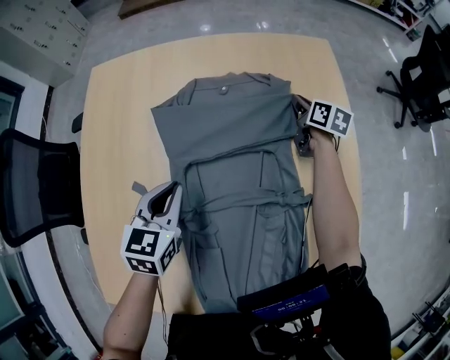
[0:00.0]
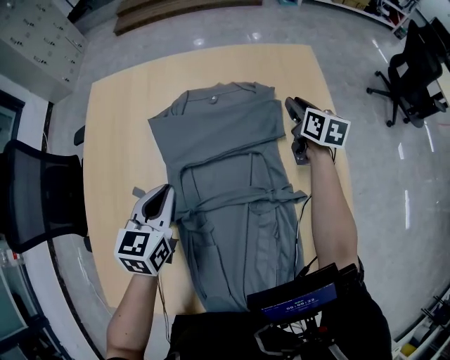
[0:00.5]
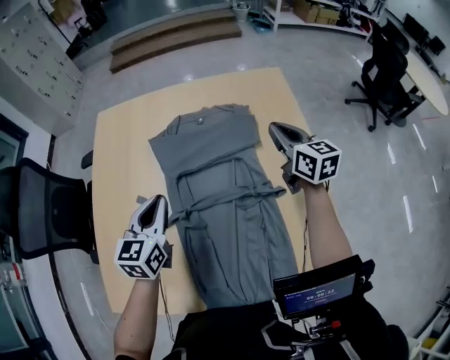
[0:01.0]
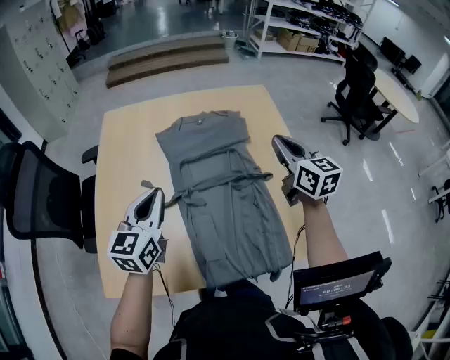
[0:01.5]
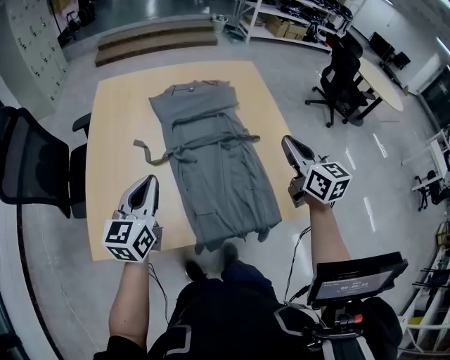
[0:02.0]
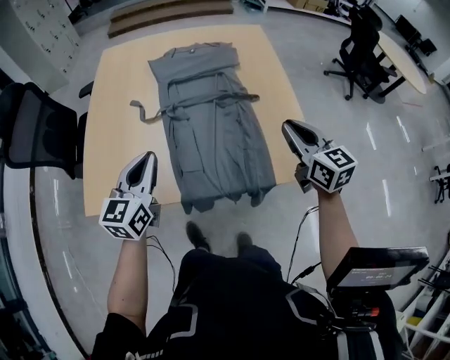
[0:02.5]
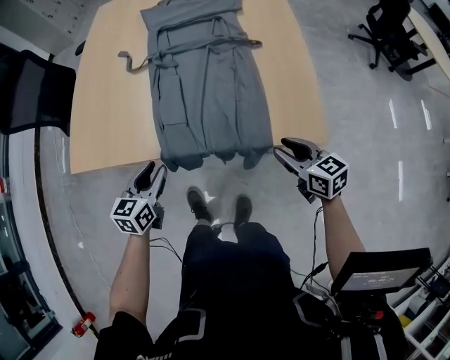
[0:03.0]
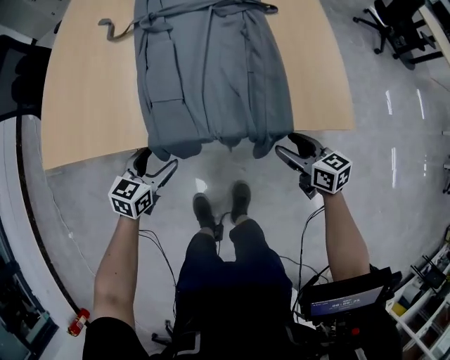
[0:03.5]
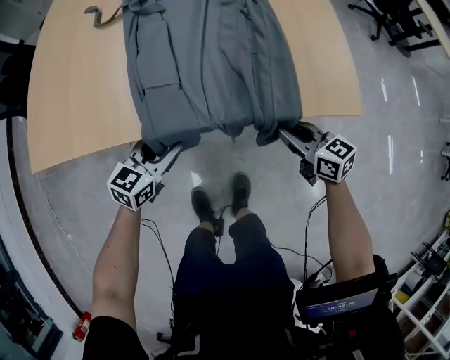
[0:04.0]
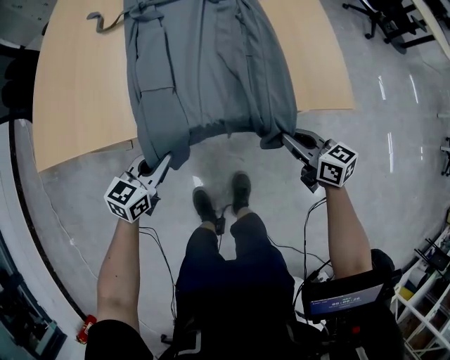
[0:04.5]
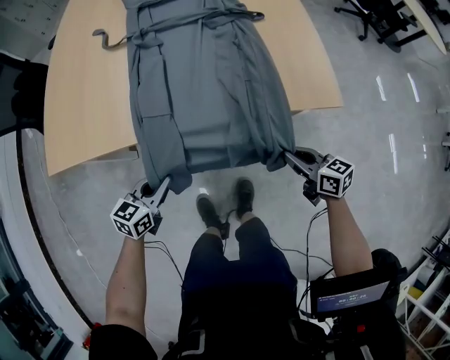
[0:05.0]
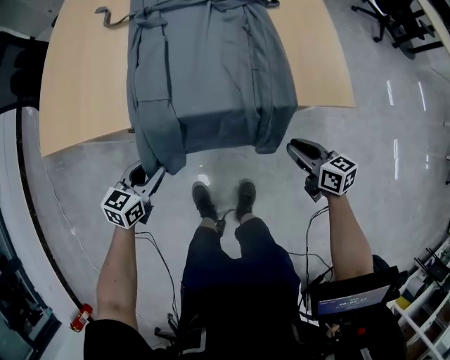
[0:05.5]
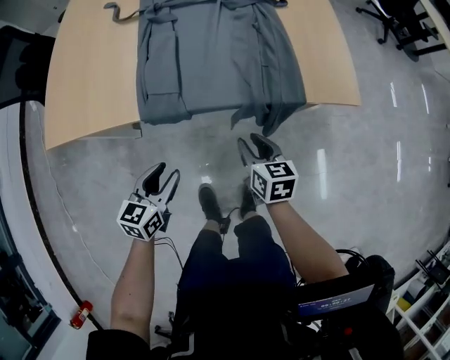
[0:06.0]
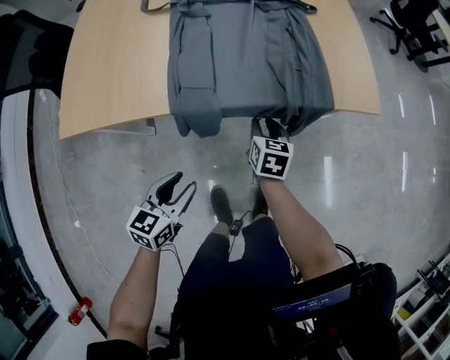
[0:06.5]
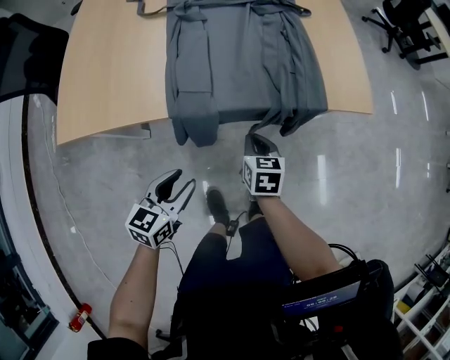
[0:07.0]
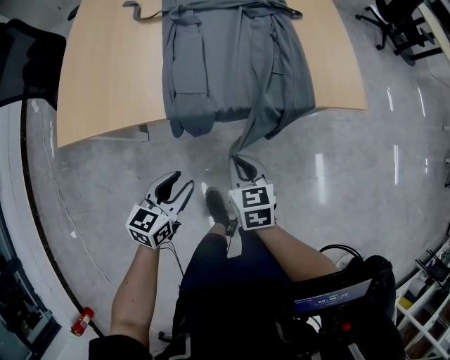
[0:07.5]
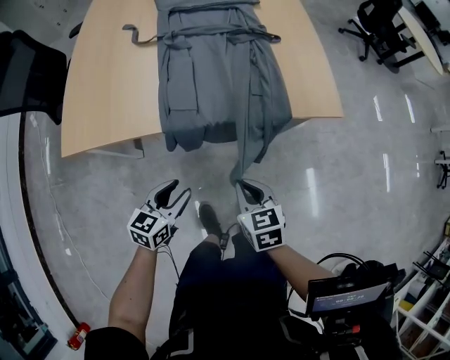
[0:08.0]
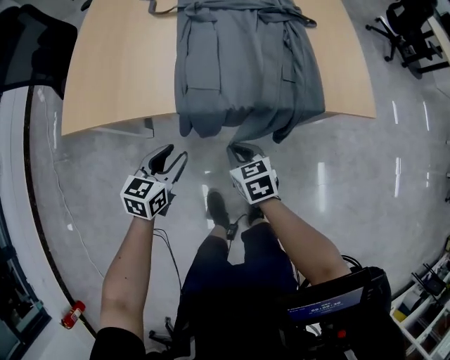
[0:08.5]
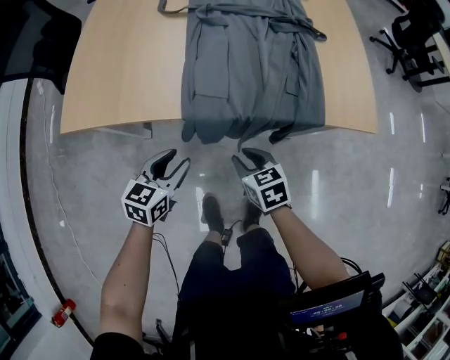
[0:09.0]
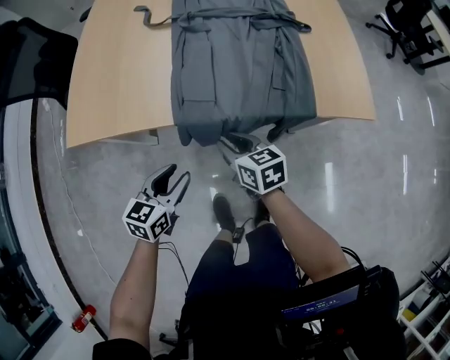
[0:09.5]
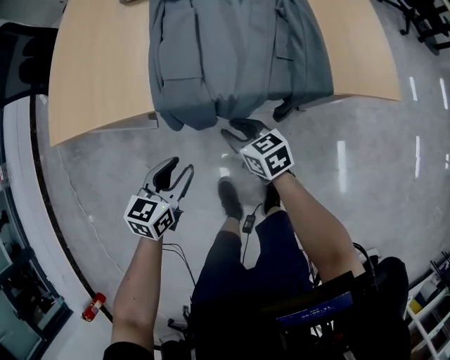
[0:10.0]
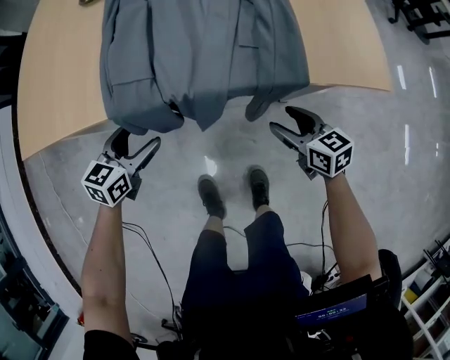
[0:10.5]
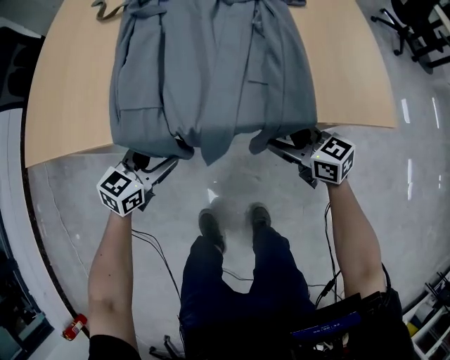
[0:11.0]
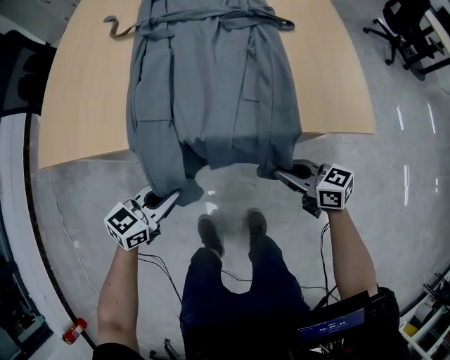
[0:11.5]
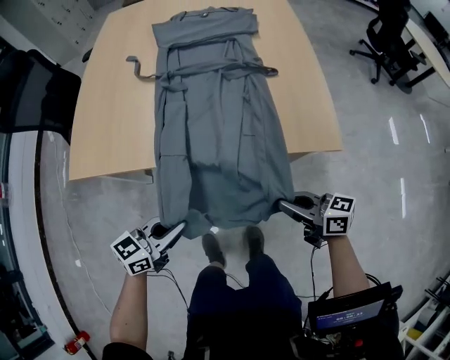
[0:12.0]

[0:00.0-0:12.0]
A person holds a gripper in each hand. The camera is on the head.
0:00.0 to 0:02.0: The left gripper is displaced backward and upward by approximately 30 cm, and turns by approximately 30 degrees. The right gripper goes about 50 cm backward and upward, and turns by roughly 30 degrees.
0:02.0 to 0:04.0: Both grippers move downward and backward, some 40 cm. The right gripper turns by roughly 40 degrees, and opens, then closes once more; the left gripper changes its angle by roughly 30 degrees, and opens its fingers.
0:04.0 to 0:06.0: The right gripper heads to the left and backward, covering some 10 cm, and swivels roughly 20 degrees. The left gripper heads backward, covering some 10 cm, and closes, then opens again.
0:06.0 to 0:08.0: The right gripper goes some 15 cm backward and upward, and closes up.
0:08.0 to 0:10.0: The right gripper moves up and down over about 15 cm, changing direction 2 times, turns by about 30 degrees, and opens its fingers. The left gripper is displaced downward by about 5 cm.
0:10.0 to 0:12.0: The left gripper is displaced upward and to the right by about 15 cm, swivels approximately 30 degrees, and closes its fingers; the right gripper travels upward and to the right by approximately 25 cm, rotates some 20 degrees, and opens, then closes again.

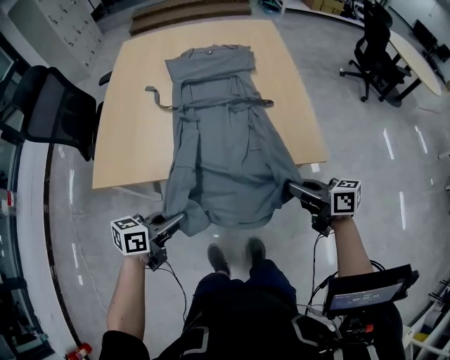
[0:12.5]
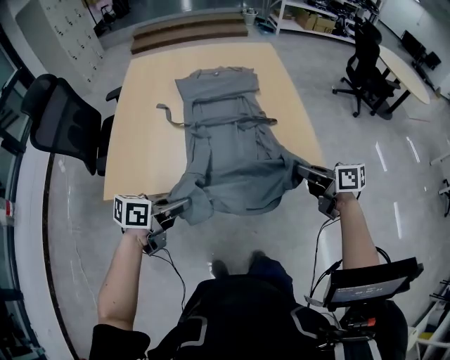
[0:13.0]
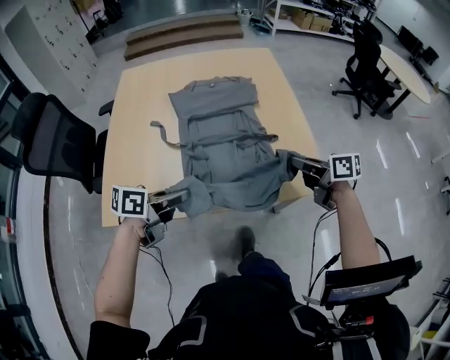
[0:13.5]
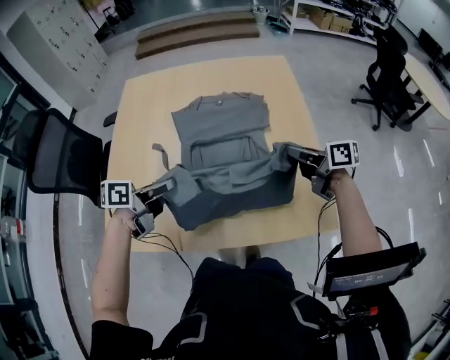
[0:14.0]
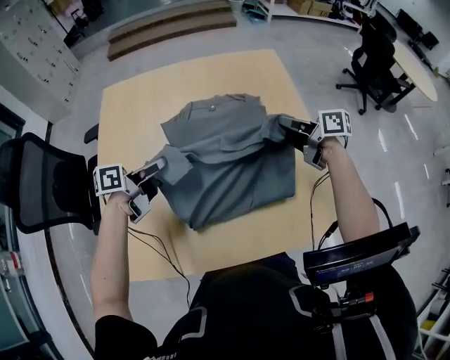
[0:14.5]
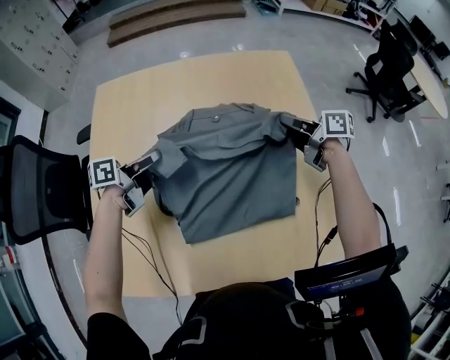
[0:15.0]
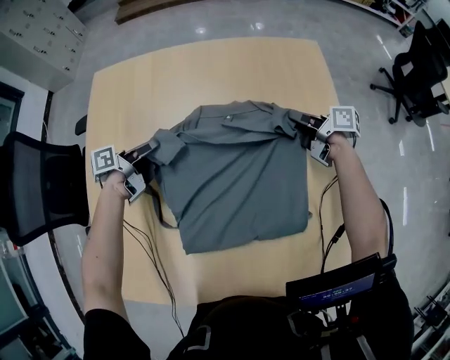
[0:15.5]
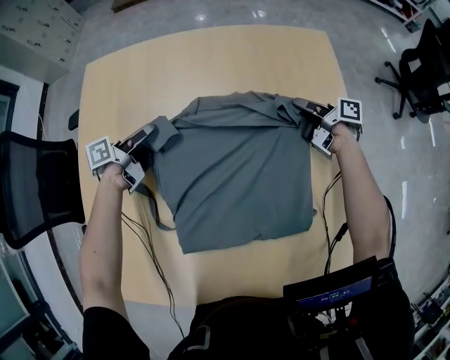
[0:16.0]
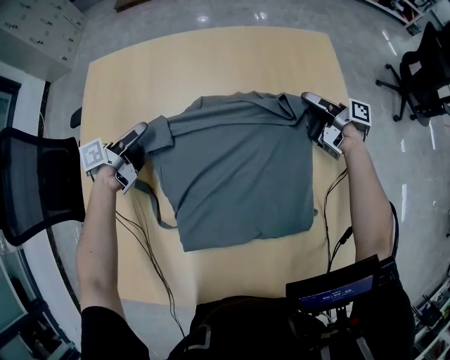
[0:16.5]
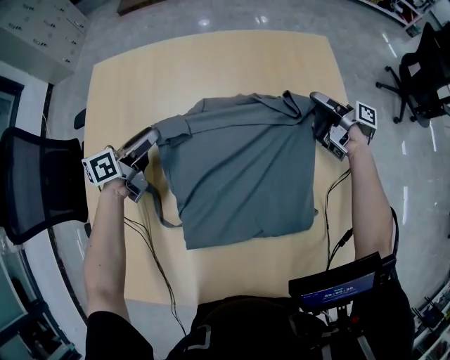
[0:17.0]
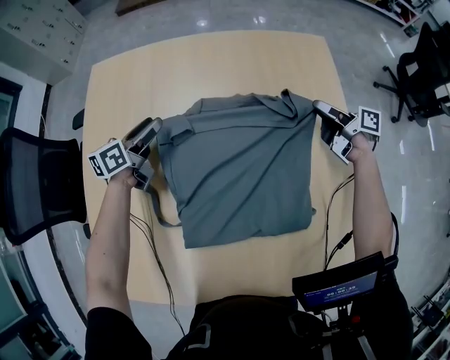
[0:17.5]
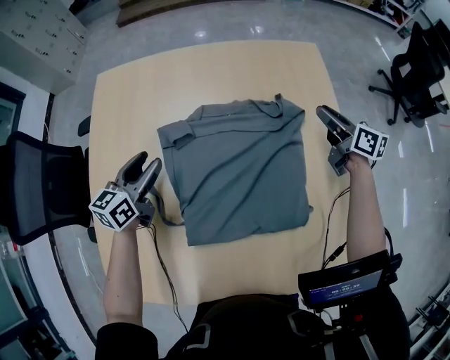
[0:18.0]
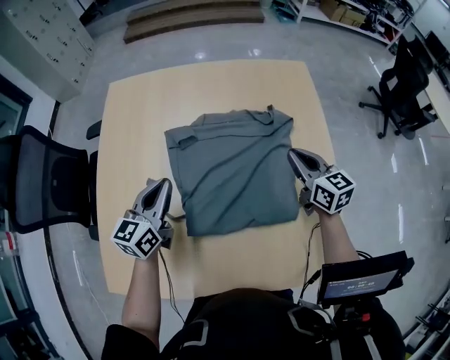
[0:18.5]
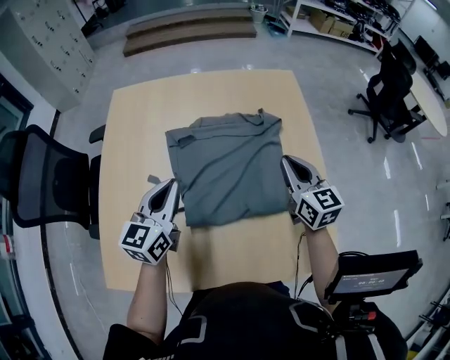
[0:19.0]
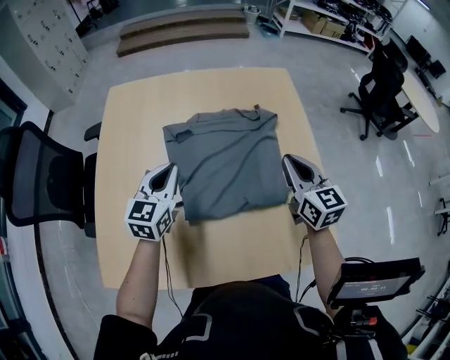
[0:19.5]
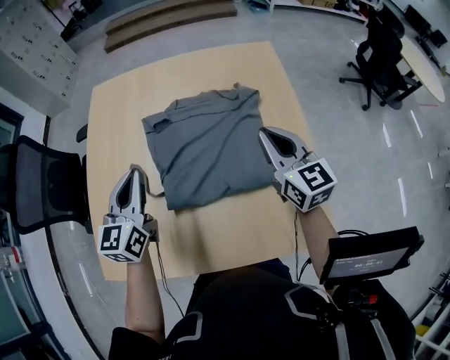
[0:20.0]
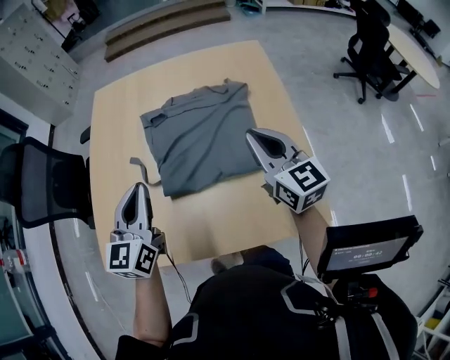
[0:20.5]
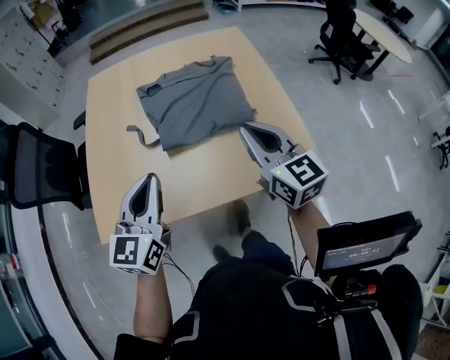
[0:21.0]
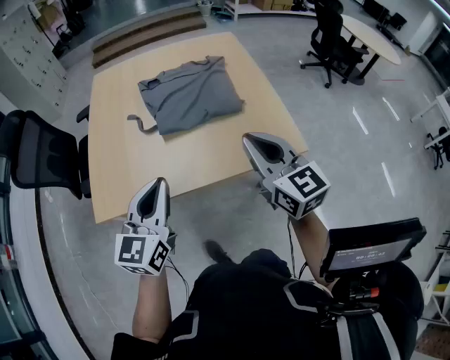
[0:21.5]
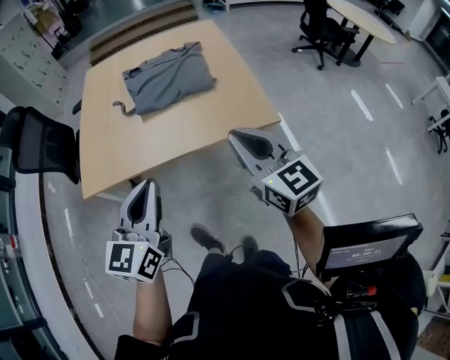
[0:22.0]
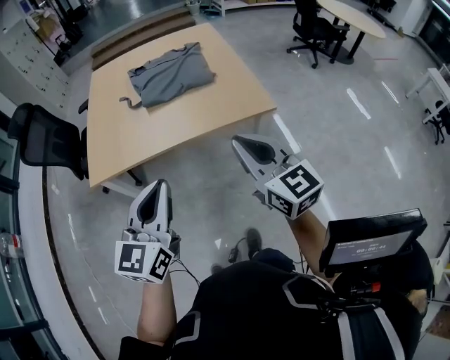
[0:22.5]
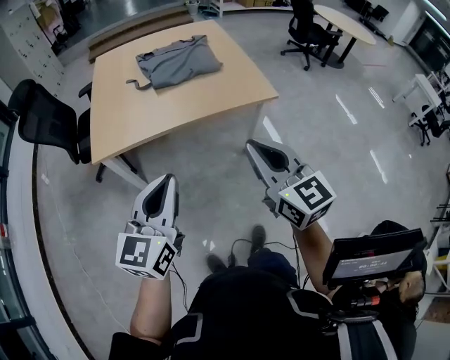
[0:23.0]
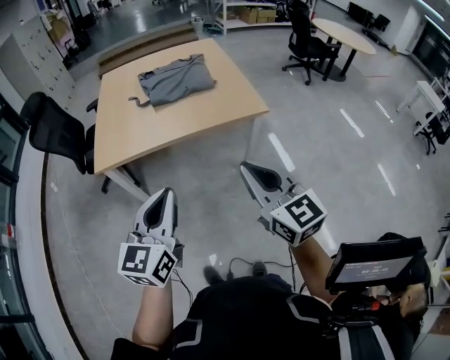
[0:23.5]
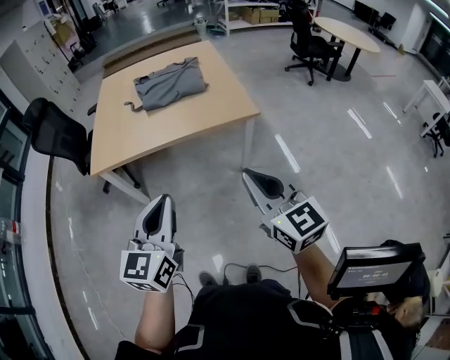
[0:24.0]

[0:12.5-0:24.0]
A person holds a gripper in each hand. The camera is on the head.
0:12.5 to 0:14.5: The two grippers travel together, forward, about 50 cm. The left gripper rotates some 20 degrees.
0:14.5 to 0:16.5: The two grippers go roughly 25 cm forward and downward. The right gripper rotates about 30 degrees, and opens up. Meanwhile the left gripper turns by some 20 degrees, and opens up.
0:16.5 to 0:18.5: Both grippers move backward and upward, approximately 20 cm. The right gripper rolls counterclockwise, seen from behind, by roughly 70 degrees, and closes up, while the left gripper rotates around the line of its fingers by roughly 50 degrees, clockwise from behind, and closes its fingers.
0:18.5 to 0:20.0: The two grippers go some 10 cm upward and backward.
0:20.0 to 0:22.0: The pair of grippers is taken backward, roughly 50 cm.
0:22.0 to 0:24.0: The grippers both shift backward by about 25 cm.

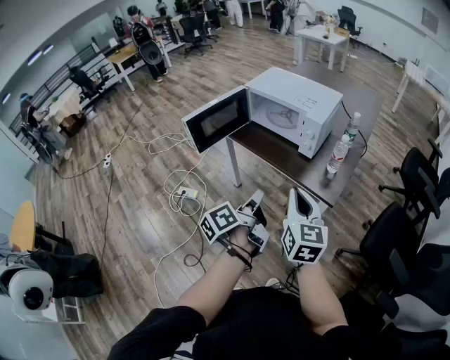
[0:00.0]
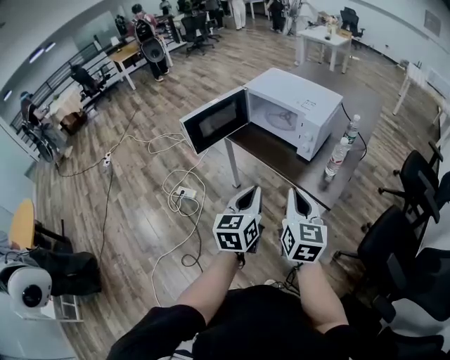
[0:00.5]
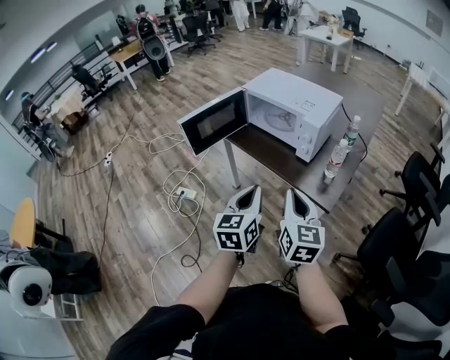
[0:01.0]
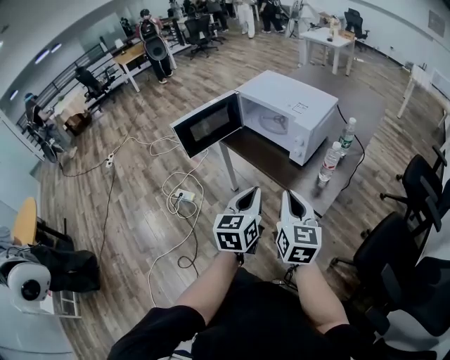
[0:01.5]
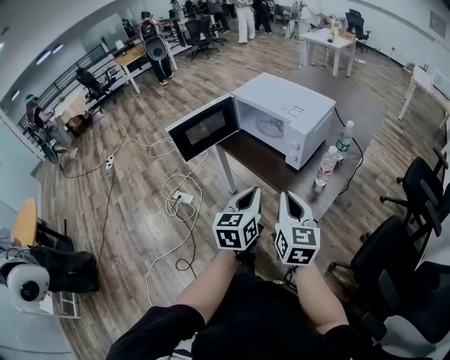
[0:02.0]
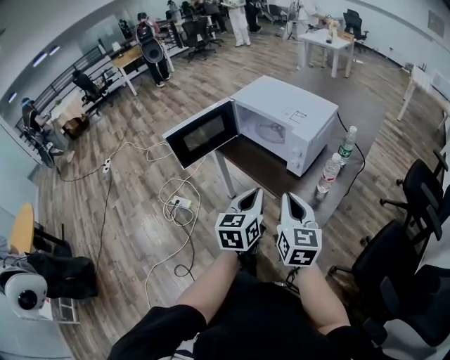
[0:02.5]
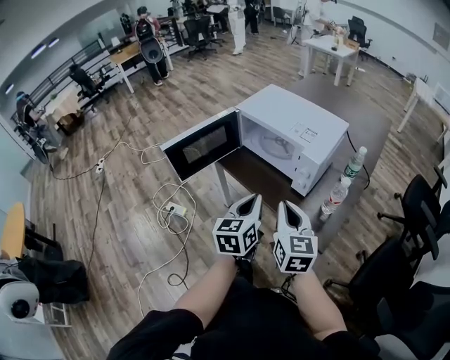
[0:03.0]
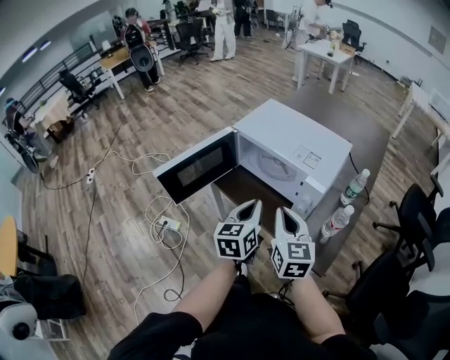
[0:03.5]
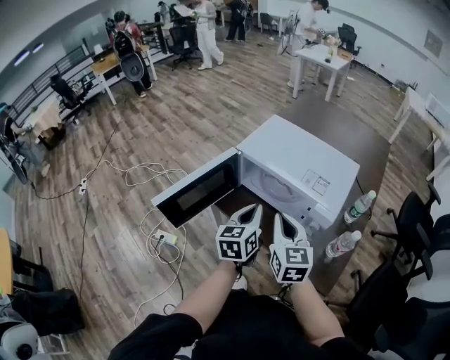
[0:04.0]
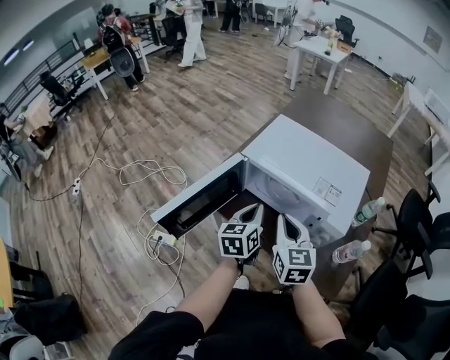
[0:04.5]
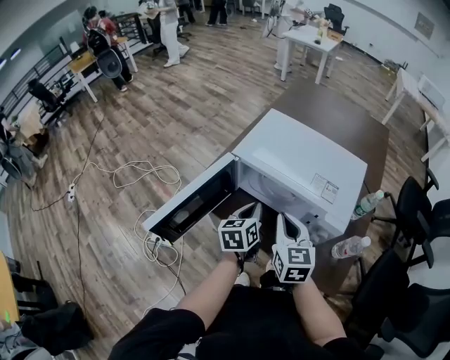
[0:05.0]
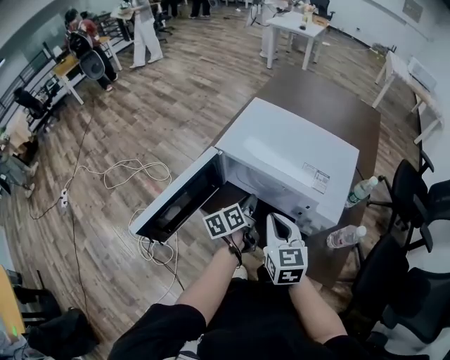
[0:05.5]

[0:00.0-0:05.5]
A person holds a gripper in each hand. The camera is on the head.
0:00.0 to 0:02.0: Both grippers move to the right and forward, some 10 cm. The left gripper rotates around the line of its fingers by about 60 degrees, clockwise from behind.
0:02.0 to 0:03.5: Both grippers travel together forward, roughly 20 cm.
0:03.5 to 0:05.5: The left gripper heads forward and downward, covering some 25 cm, and swivels about 40 degrees; the right gripper goes approximately 15 cm forward, to the left and downward.
